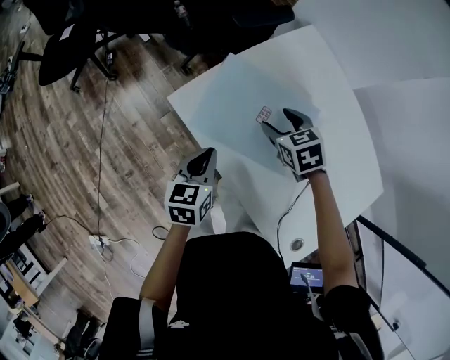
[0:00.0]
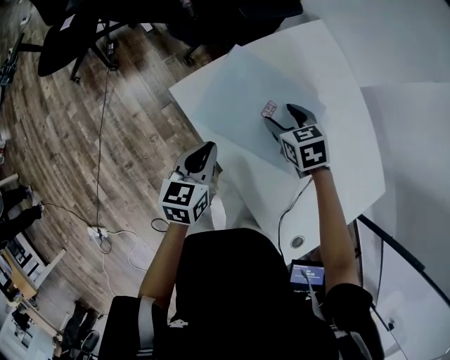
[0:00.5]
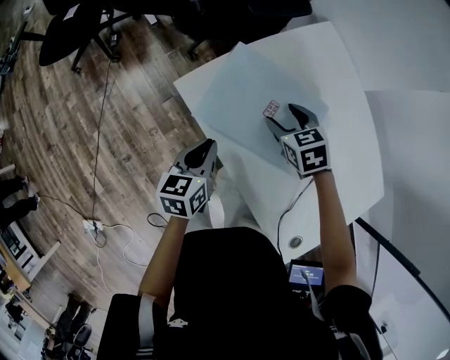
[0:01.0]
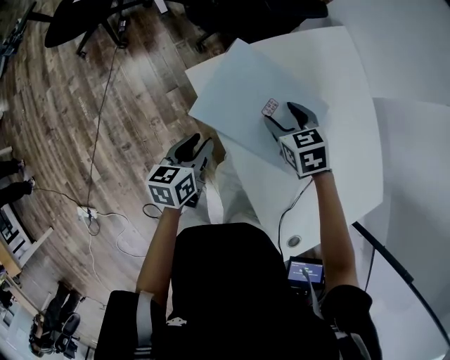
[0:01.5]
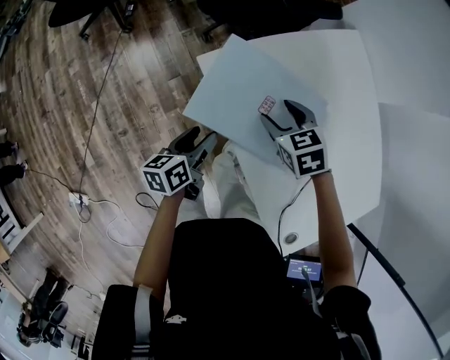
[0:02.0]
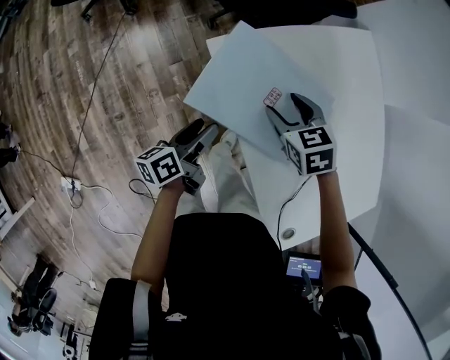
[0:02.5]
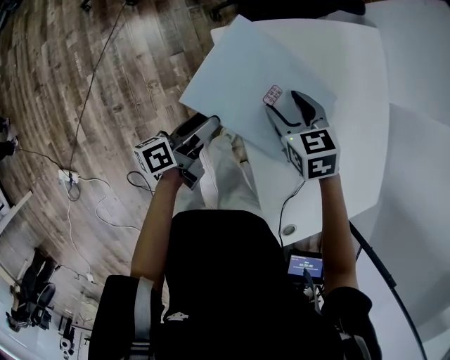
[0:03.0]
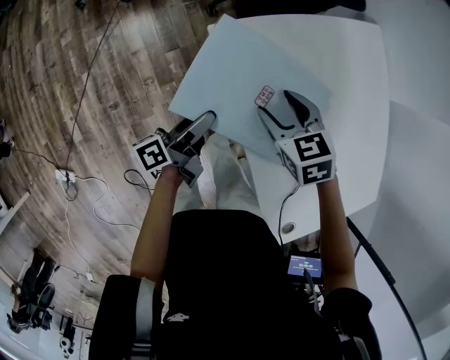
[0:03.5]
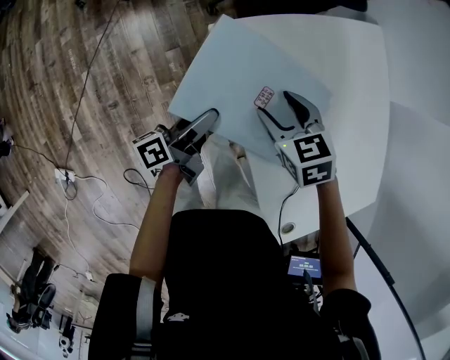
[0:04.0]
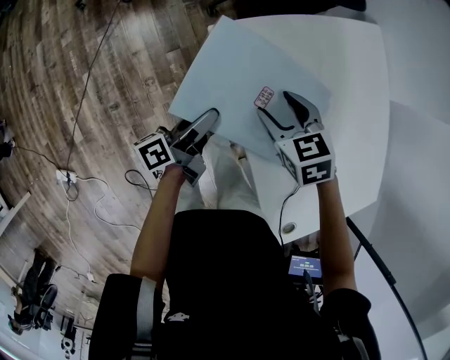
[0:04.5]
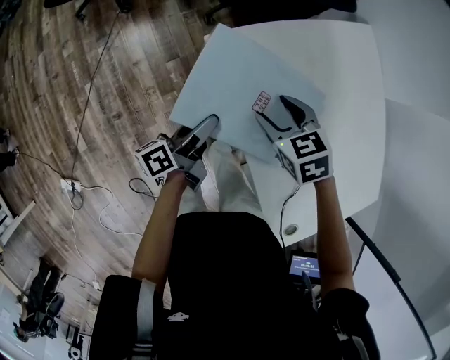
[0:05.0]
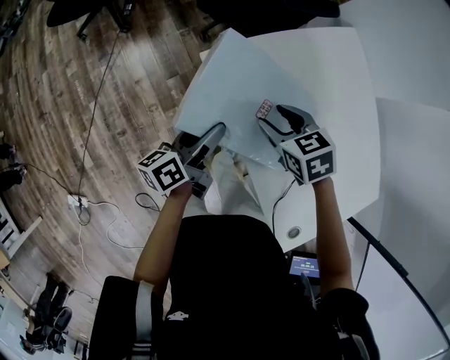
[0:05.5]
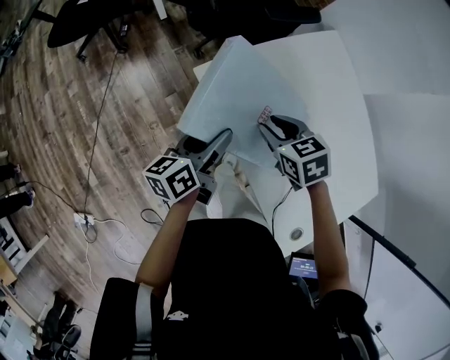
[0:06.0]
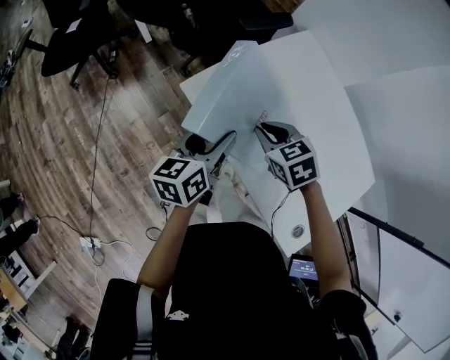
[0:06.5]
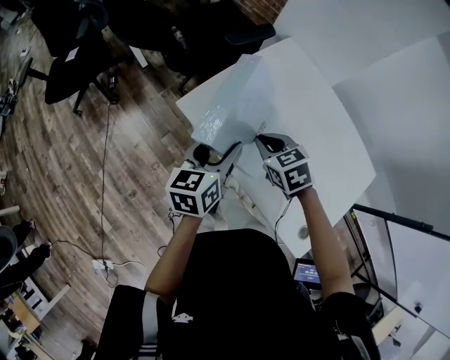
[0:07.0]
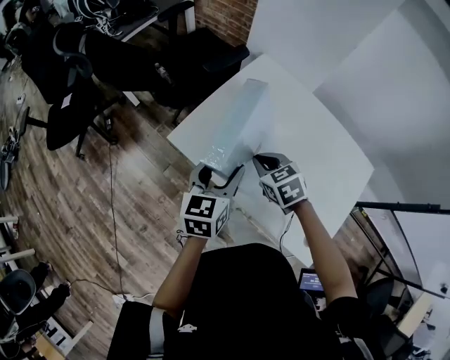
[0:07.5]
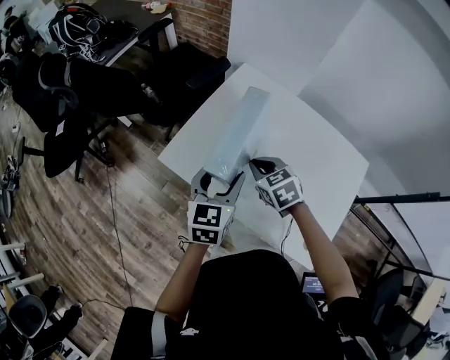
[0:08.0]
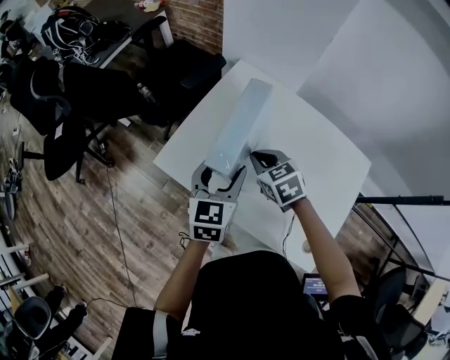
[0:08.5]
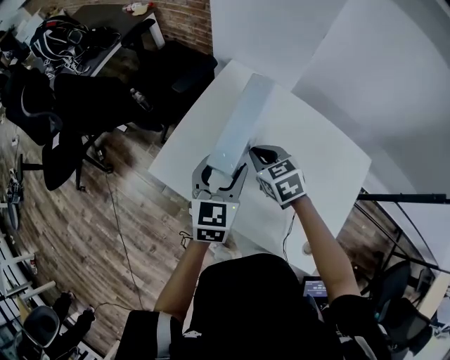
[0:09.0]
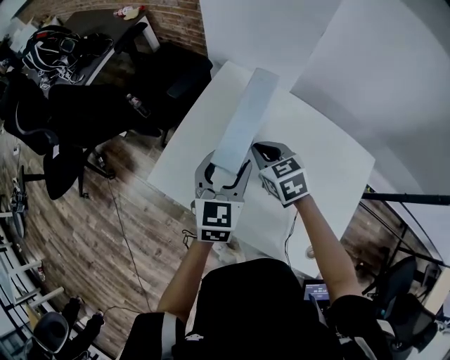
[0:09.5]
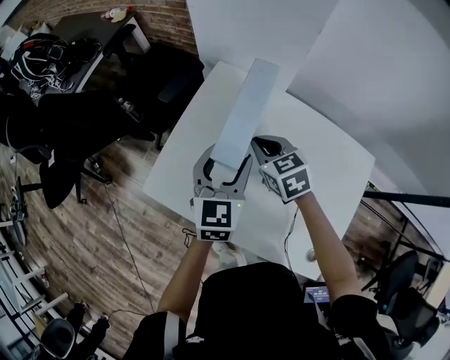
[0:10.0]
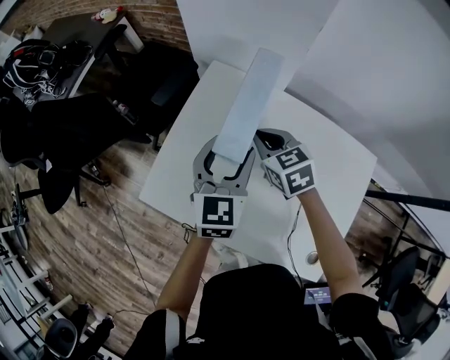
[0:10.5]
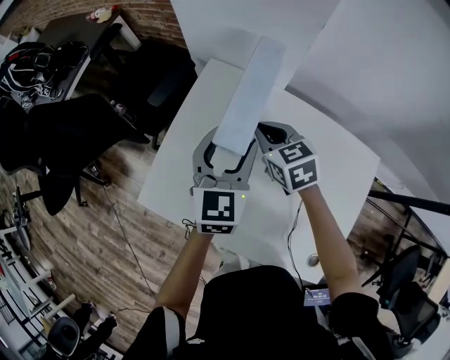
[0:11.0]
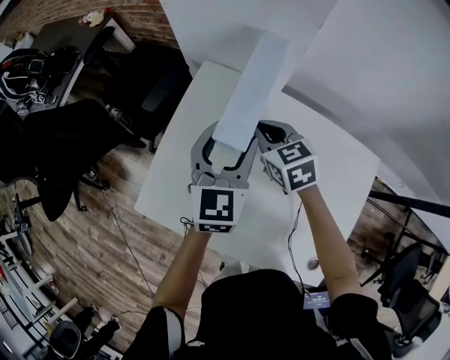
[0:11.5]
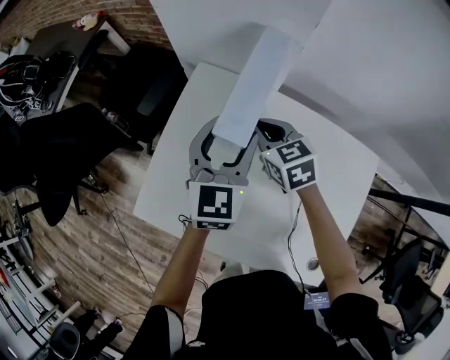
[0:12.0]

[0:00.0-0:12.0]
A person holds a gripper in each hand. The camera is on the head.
0:00.0 to 0:02.0: The right gripper goes some 10 cm to the left. The left gripper is displaced to the left and downward by approximately 10 cm, swivels approximately 30 degrees, and opens.
0:02.0 to 0:04.0: The right gripper ends up some 5 cm from where it was. Meanwhile the left gripper changes its angle by about 30 degrees.
0:04.0 to 0:06.0: The left gripper heads upward, covering about 10 cm, and rotates some 30 degrees; the right gripper travels upward by about 5 cm, and closes.
0:06.0 to 0:08.0: The right gripper is displaced to the right and upward by about 15 cm, rotates roughly 20 degrees, and closes its fingers; the left gripper travels to the right and upward by approximately 20 cm, and twists about 50 degrees clockwise, seen from behind.
0:08.0 to 0:10.0: Both grippers move forward and to the right, approximately 20 cm.
0:10.0 to 0:12.0: The grippers both shift forward and to the right by approximately 10 cm.

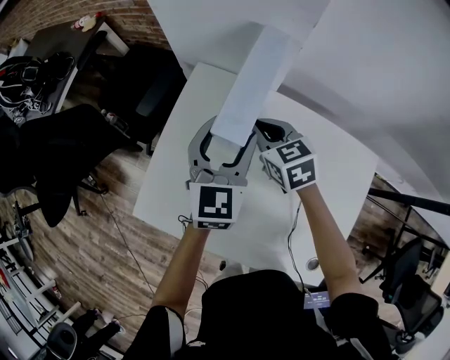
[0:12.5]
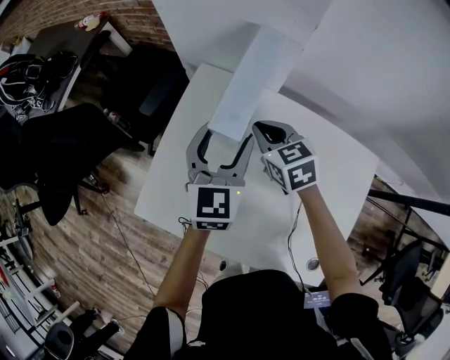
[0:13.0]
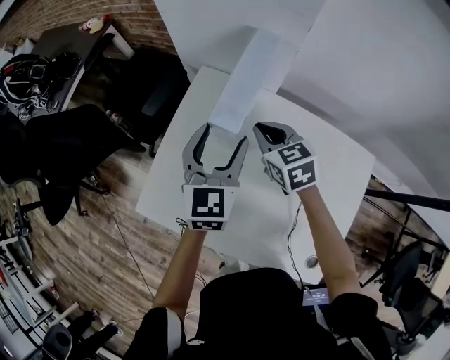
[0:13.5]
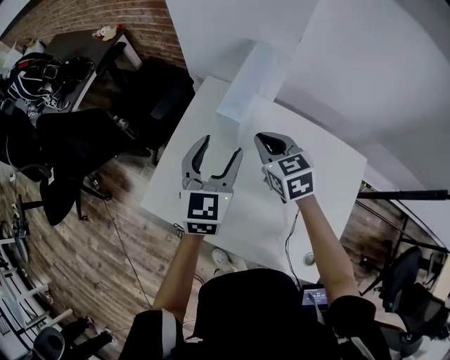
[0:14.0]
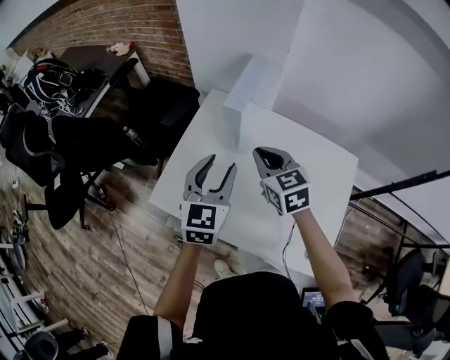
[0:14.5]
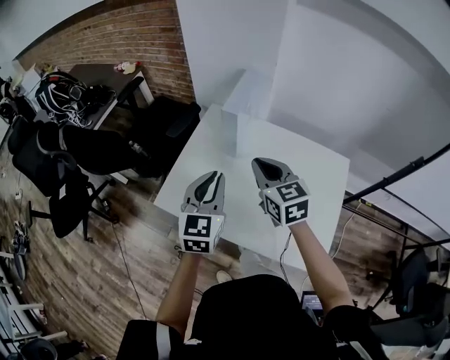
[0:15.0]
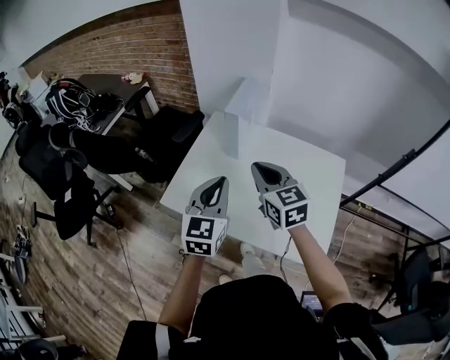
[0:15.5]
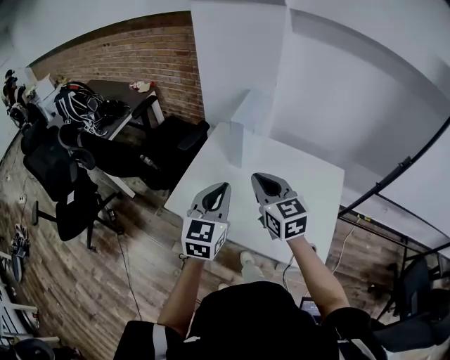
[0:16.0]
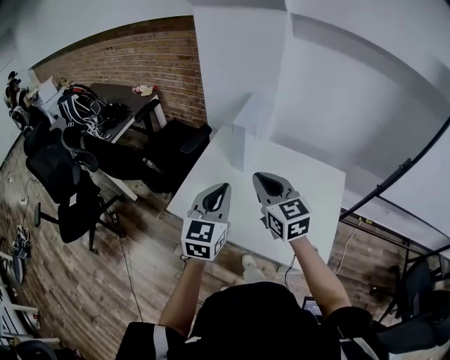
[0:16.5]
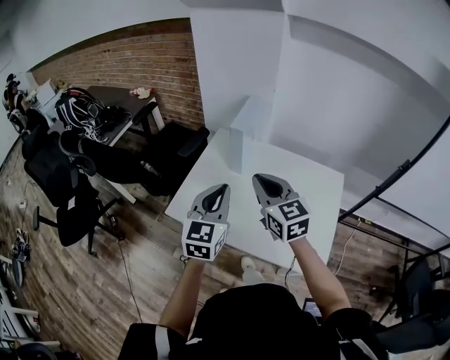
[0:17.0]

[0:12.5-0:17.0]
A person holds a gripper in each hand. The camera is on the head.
0:12.5 to 0:14.5: The right gripper shifts roughly 20 cm backward and upward, while the left gripper is displaced backward and to the left by approximately 20 cm.
0:14.5 to 0:17.0: The two grippers go some 20 cm backward and upward. The left gripper closes up.

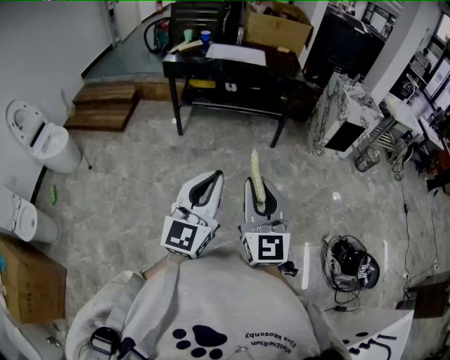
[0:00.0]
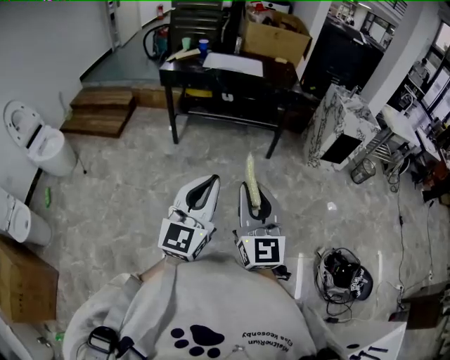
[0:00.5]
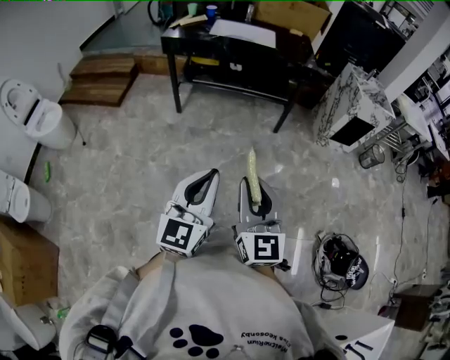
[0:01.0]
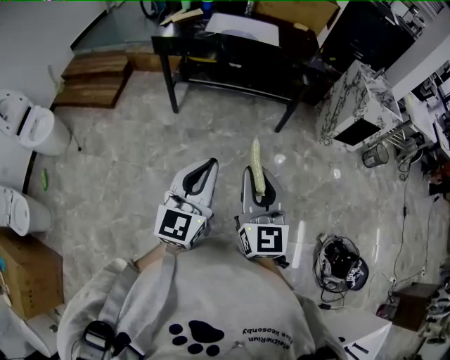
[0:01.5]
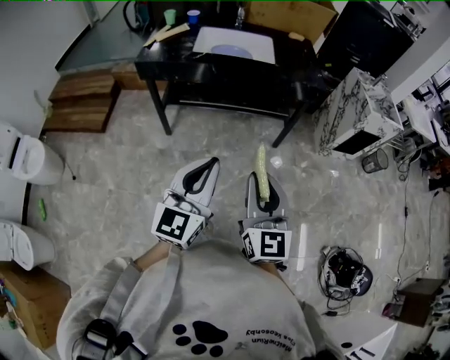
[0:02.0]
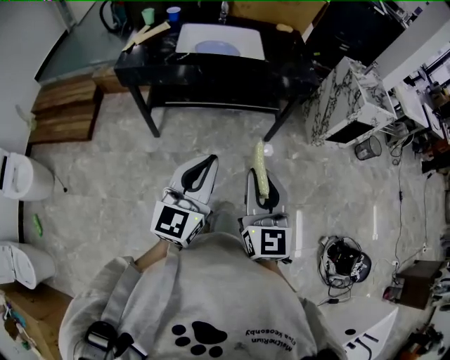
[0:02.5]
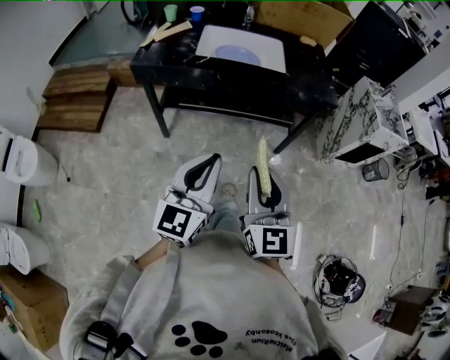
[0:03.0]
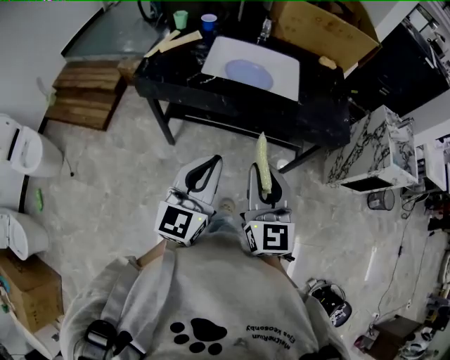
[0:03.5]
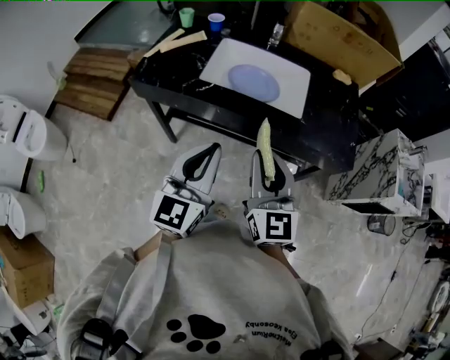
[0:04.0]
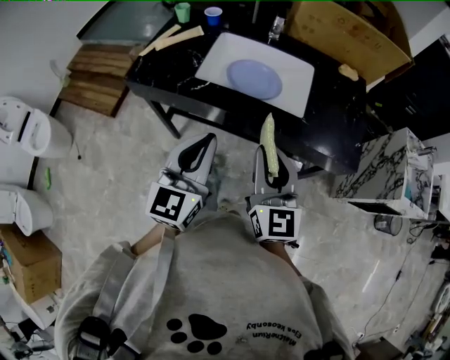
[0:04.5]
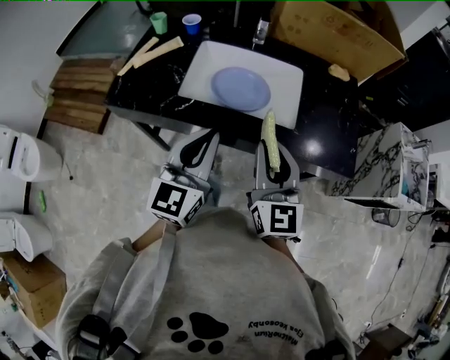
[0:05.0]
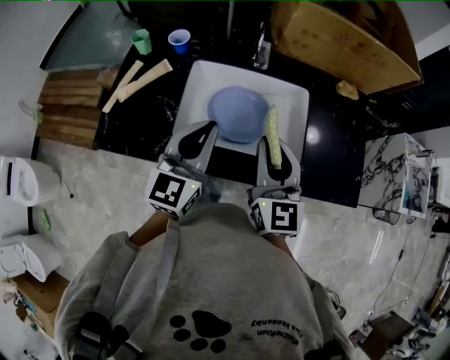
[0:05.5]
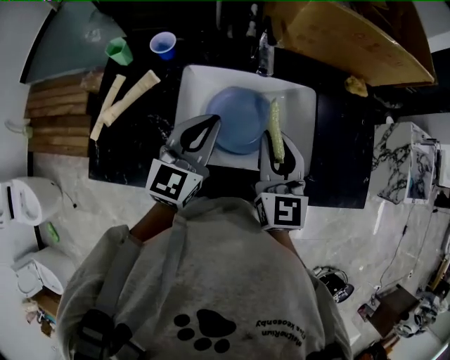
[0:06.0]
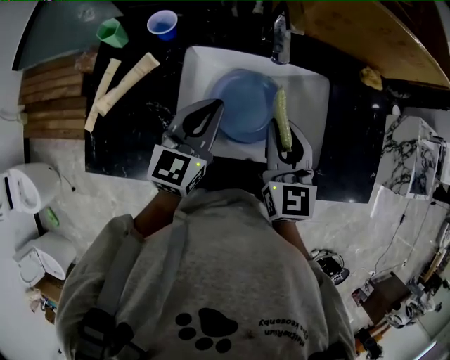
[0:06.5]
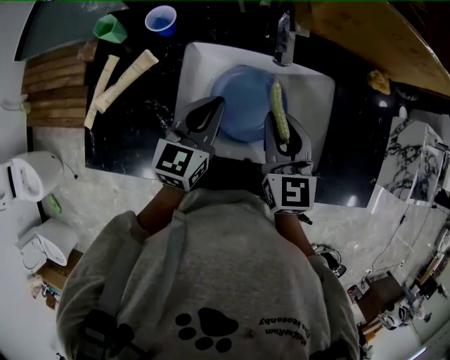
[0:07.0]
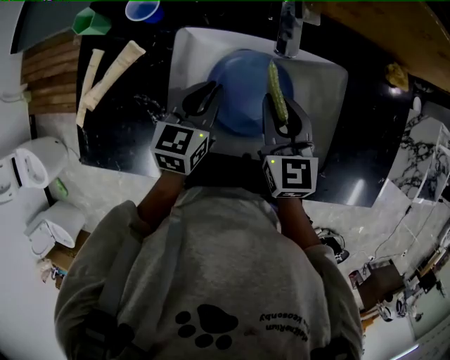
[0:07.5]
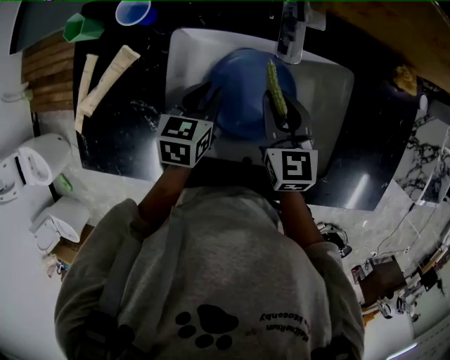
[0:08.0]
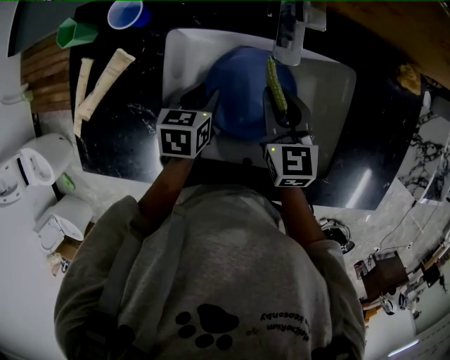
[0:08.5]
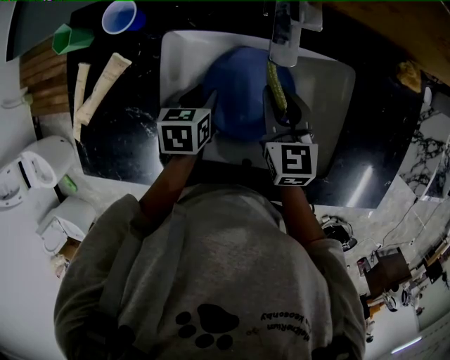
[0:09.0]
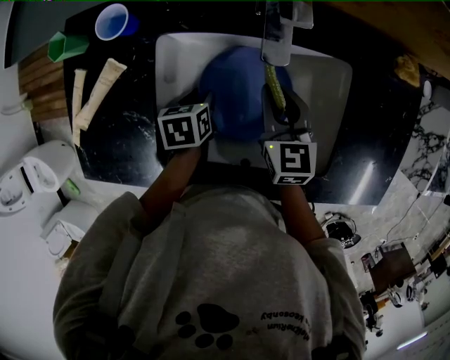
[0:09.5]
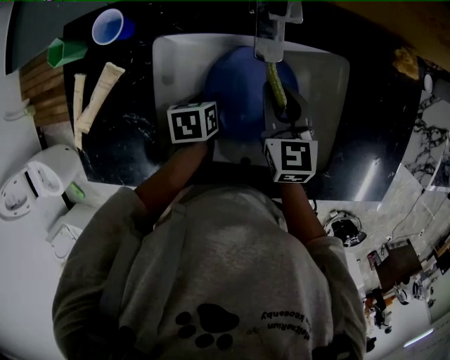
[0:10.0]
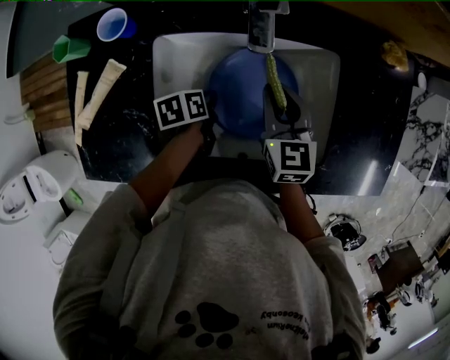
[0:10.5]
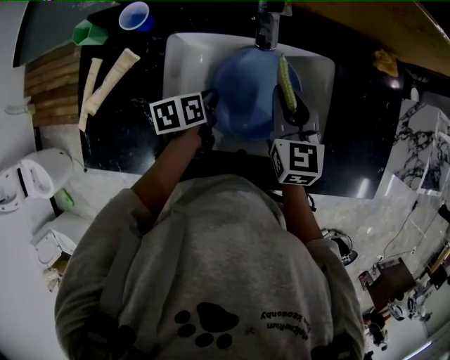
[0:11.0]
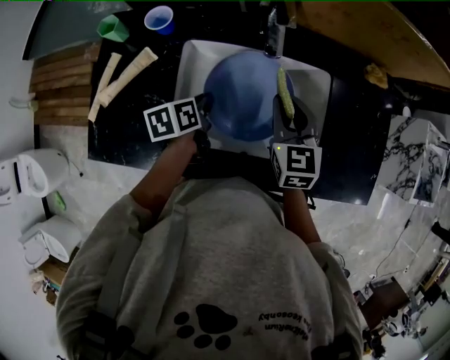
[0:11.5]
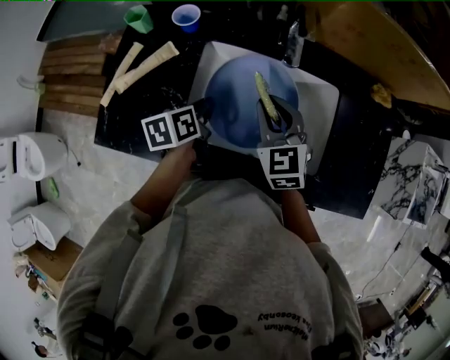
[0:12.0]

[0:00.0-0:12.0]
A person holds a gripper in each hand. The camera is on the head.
0:00.0 to 0:02.0: The grippers both shift forward by some 35 cm.
0:02.0 to 0:04.0: The two grippers go roughly 35 cm forward.
0:04.0 to 0:06.0: Both grippers travel together forward, about 40 cm. The left gripper changes its angle by approximately 20 degrees.
0:06.0 to 0:08.0: The left gripper goes some 20 cm downward, tilts its fingers approximately 40 degrees downward, and opens up, while the right gripper is displaced downward and forward by some 15 cm, and swivels approximately 20 degrees.
0:08.0 to 0:10.0: The left gripper is displaced downward by approximately 10 cm, and swivels some 30 degrees.
0:10.0 to 0:12.0: The right gripper travels upward, backward and to the left by approximately 15 cm, and swivels some 30 degrees. Meanwhile the left gripper shifts approximately 15 cm upward, changes its angle by approximately 30 degrees, and closes up.
